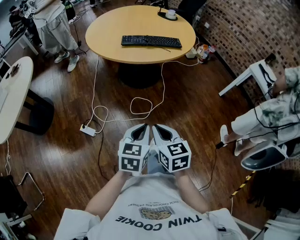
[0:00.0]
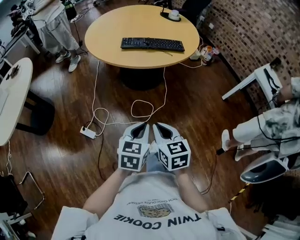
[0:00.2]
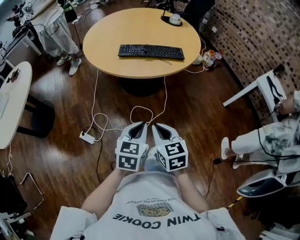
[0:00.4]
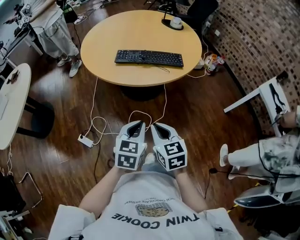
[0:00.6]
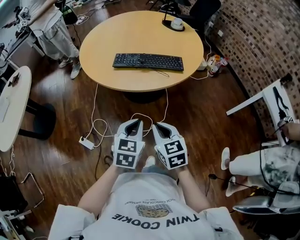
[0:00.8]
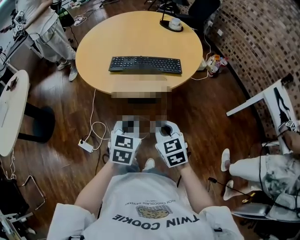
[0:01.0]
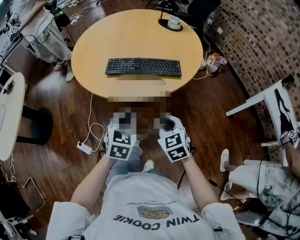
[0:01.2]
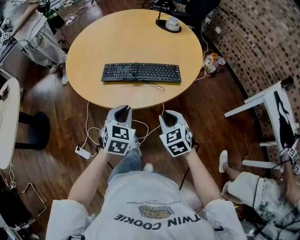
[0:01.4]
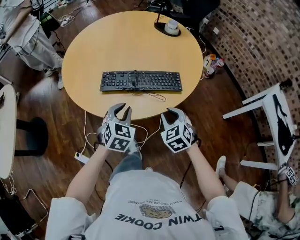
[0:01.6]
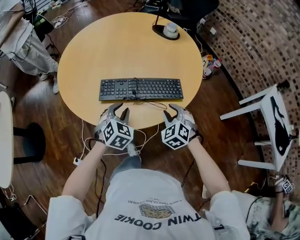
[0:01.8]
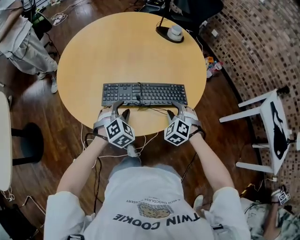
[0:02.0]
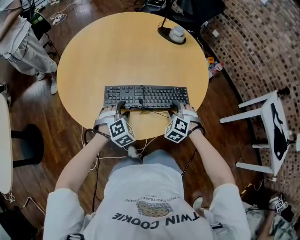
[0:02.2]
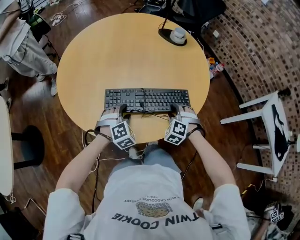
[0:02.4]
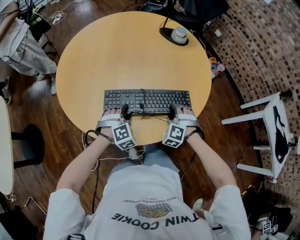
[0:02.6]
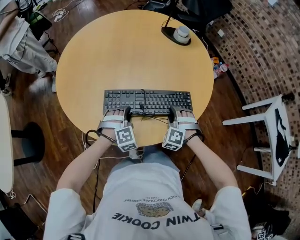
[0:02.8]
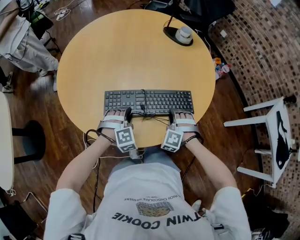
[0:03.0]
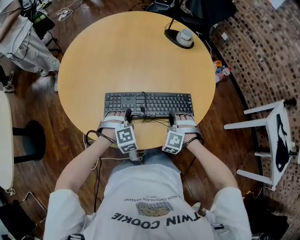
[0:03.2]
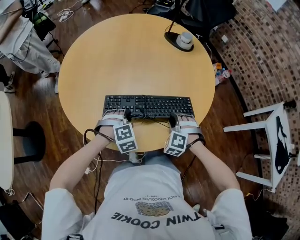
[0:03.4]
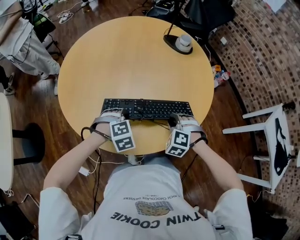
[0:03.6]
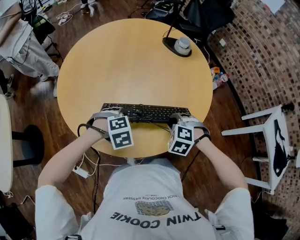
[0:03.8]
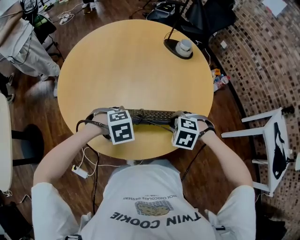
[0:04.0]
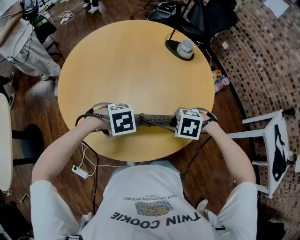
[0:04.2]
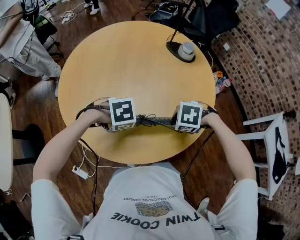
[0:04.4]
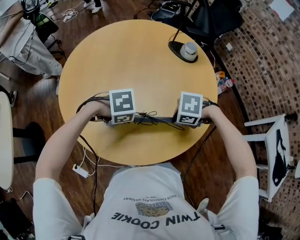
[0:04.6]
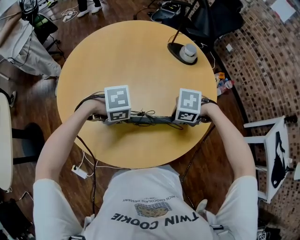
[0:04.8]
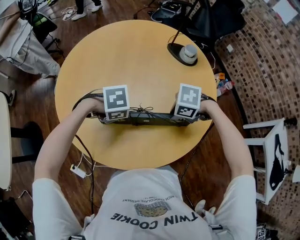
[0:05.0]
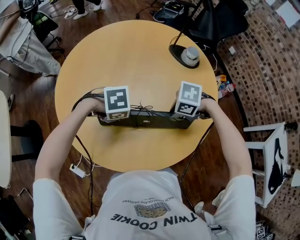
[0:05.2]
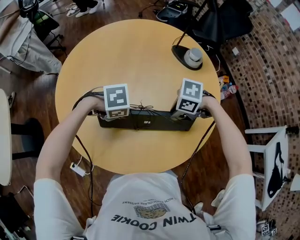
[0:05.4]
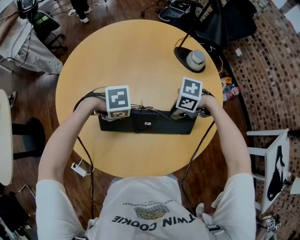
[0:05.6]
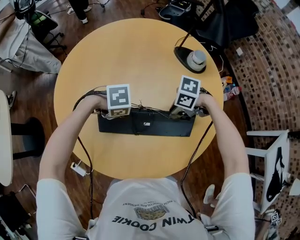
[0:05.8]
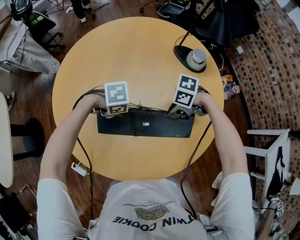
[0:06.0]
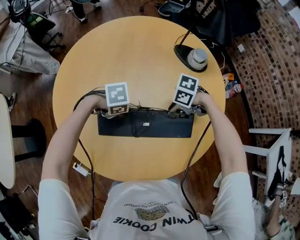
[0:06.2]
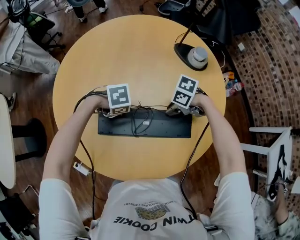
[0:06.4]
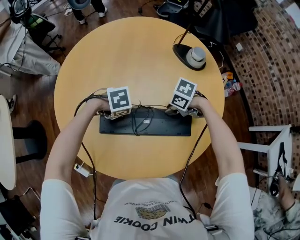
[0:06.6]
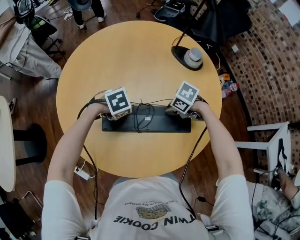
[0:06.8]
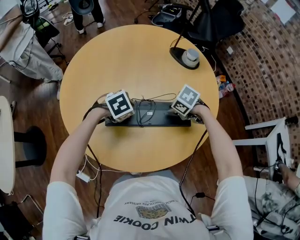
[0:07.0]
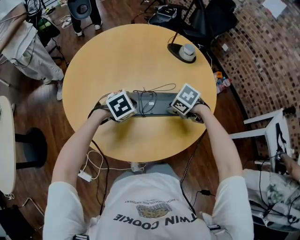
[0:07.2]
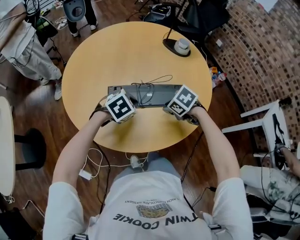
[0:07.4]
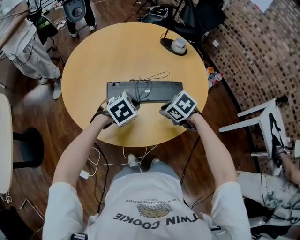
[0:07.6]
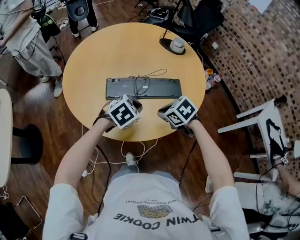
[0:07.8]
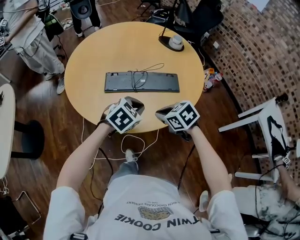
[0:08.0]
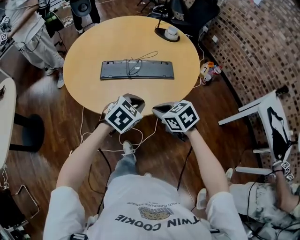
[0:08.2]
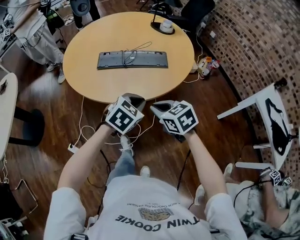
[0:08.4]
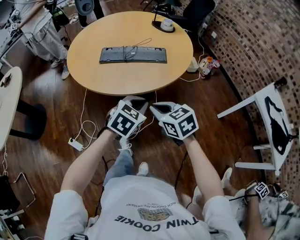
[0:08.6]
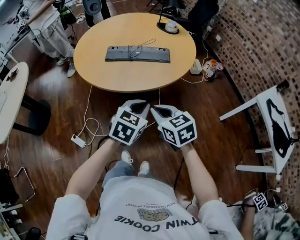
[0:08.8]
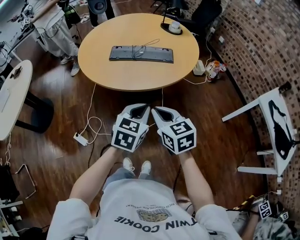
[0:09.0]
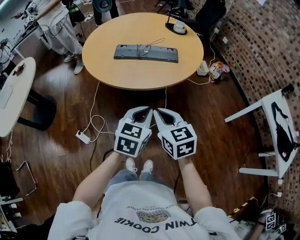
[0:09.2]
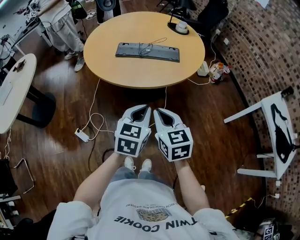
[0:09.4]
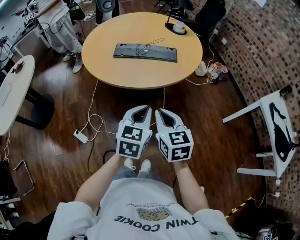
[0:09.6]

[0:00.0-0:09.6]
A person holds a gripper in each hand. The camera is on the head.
0:00.0 to 0:01.6: The pair of grippers is taken forward, approximately 50 cm. The right gripper changes its angle by some 40 degrees. Meanwhile the left gripper rotates about 30 degrees.
0:01.6 to 0:03.2: Both grippers travel together forward and downward, roughly 20 cm. The left gripper rolls clockwise, seen from behind, by approximately 40 degrees. Meanwhile the right gripper rotates around the line of its fingers by roughly 50 degrees, counterclockwise from behind, and opens, then closes once more.
0:03.2 to 0:04.8: The grippers both shift upward by about 10 cm. The left gripper turns by roughly 60 degrees. The right gripper changes its angle by approximately 70 degrees.
0:04.8 to 0:06.4: The two grippers go roughly 15 cm backward and downward. The left gripper closes. Meanwhile the right gripper turns by some 20 degrees.
0:06.4 to 0:08.0: The right gripper changes place by some 35 cm, turns by roughly 40 degrees, and closes up; the left gripper ends up about 30 cm from where it was, and changes its angle by some 50 degrees.
0:08.0 to 0:09.6: Both grippers move backward, roughly 30 cm. The right gripper rotates some 40 degrees, while the left gripper rotates some 40 degrees.

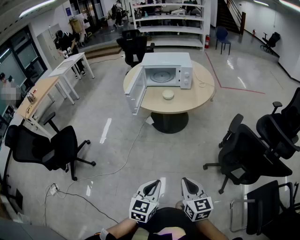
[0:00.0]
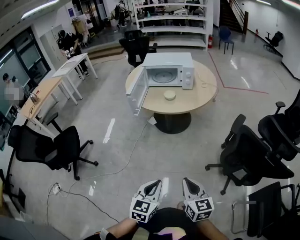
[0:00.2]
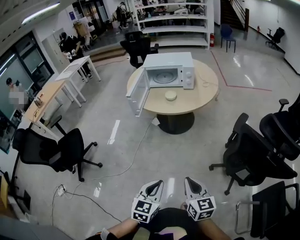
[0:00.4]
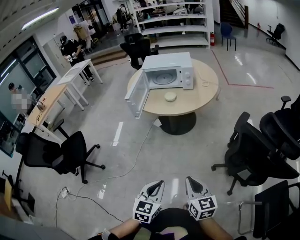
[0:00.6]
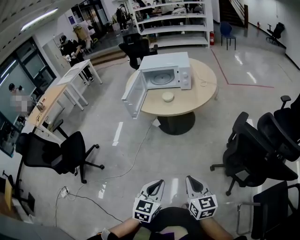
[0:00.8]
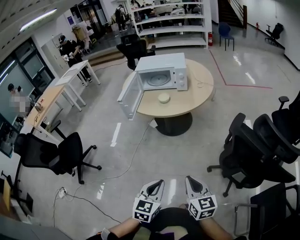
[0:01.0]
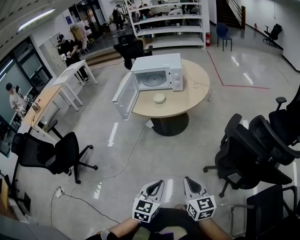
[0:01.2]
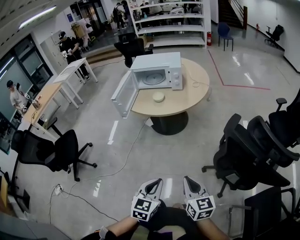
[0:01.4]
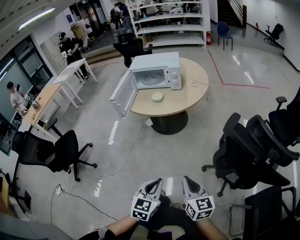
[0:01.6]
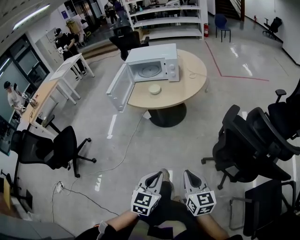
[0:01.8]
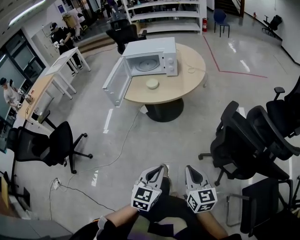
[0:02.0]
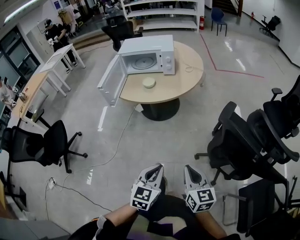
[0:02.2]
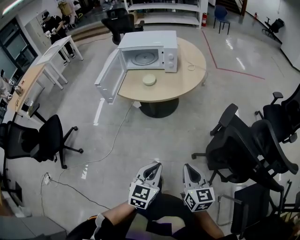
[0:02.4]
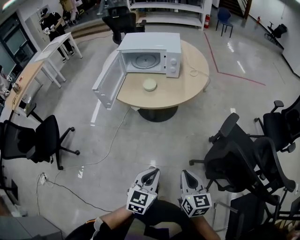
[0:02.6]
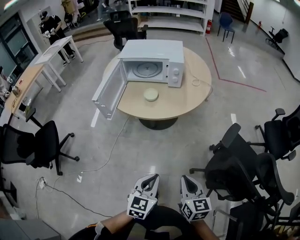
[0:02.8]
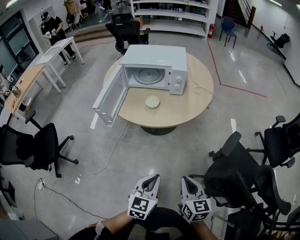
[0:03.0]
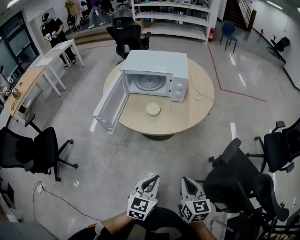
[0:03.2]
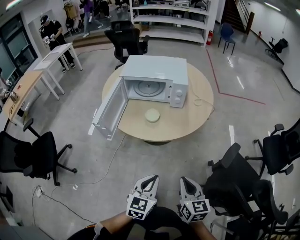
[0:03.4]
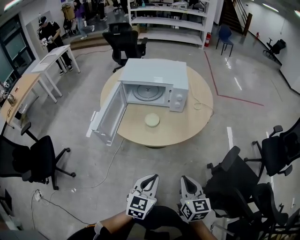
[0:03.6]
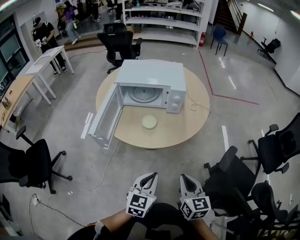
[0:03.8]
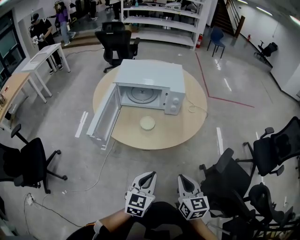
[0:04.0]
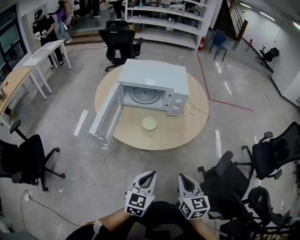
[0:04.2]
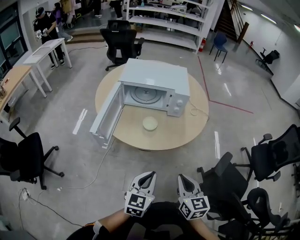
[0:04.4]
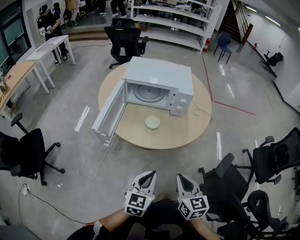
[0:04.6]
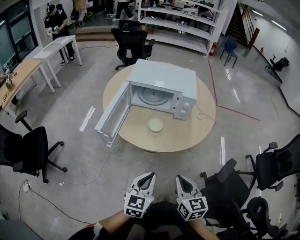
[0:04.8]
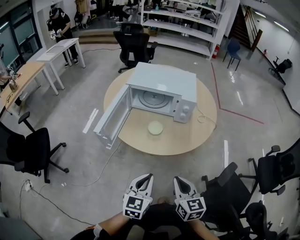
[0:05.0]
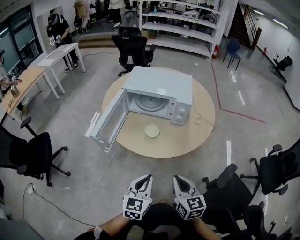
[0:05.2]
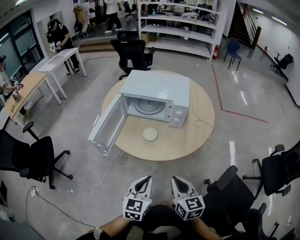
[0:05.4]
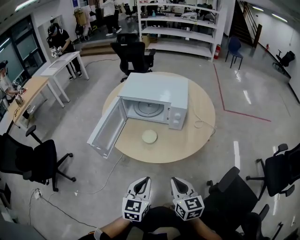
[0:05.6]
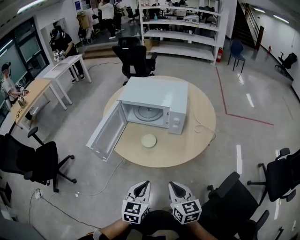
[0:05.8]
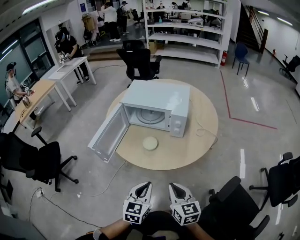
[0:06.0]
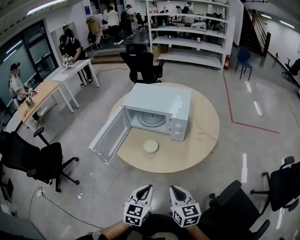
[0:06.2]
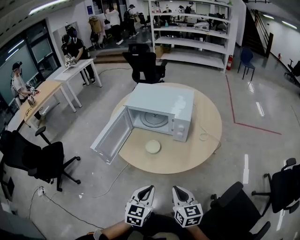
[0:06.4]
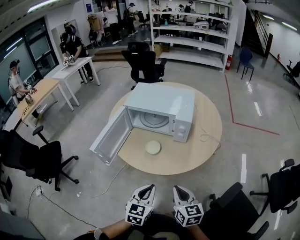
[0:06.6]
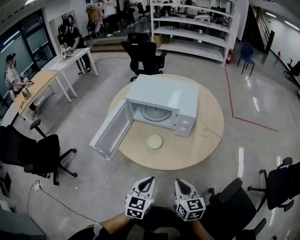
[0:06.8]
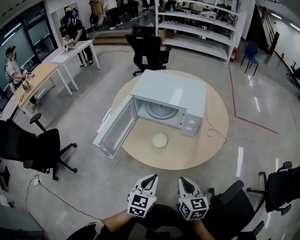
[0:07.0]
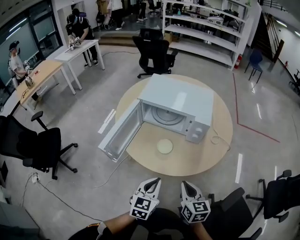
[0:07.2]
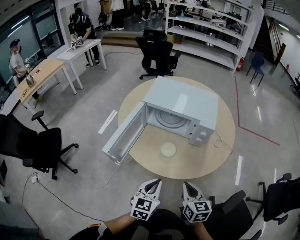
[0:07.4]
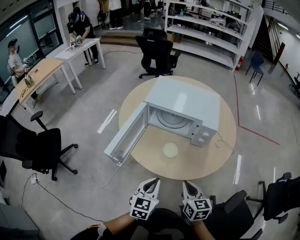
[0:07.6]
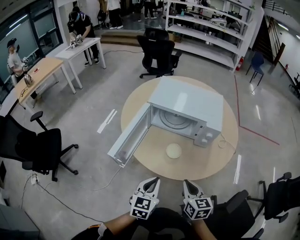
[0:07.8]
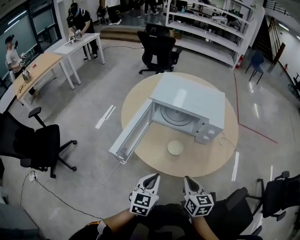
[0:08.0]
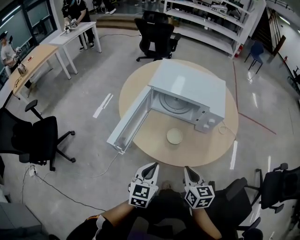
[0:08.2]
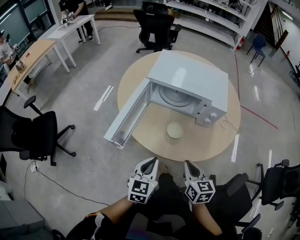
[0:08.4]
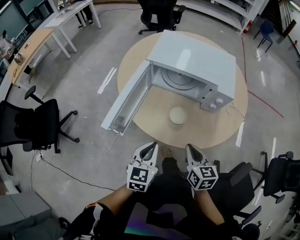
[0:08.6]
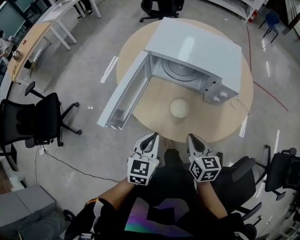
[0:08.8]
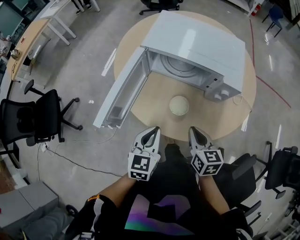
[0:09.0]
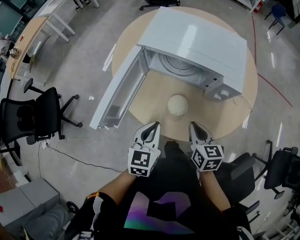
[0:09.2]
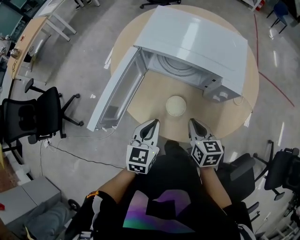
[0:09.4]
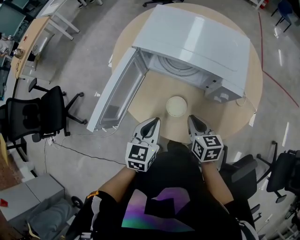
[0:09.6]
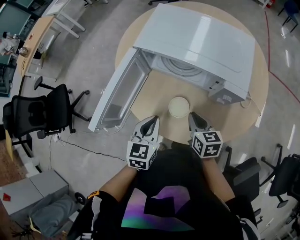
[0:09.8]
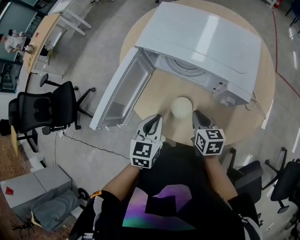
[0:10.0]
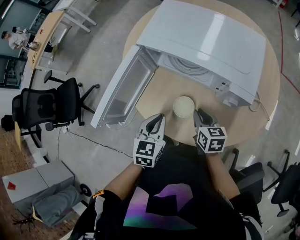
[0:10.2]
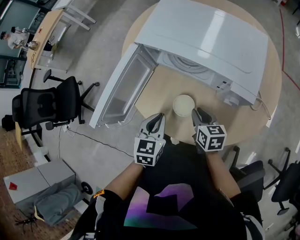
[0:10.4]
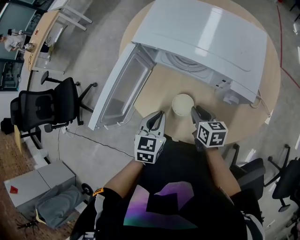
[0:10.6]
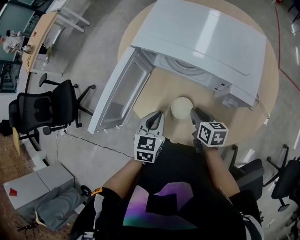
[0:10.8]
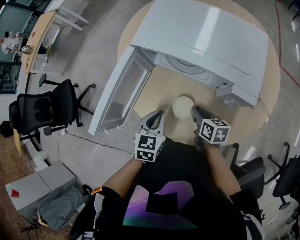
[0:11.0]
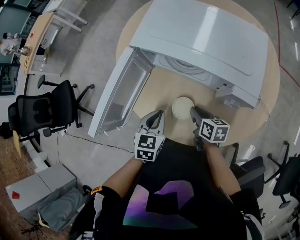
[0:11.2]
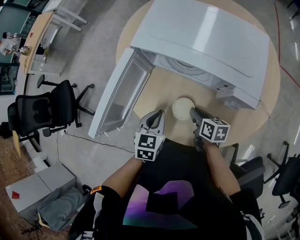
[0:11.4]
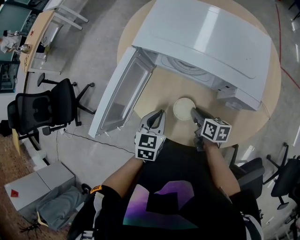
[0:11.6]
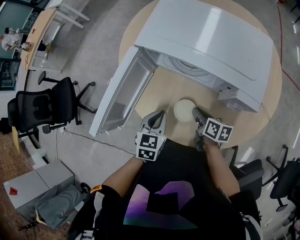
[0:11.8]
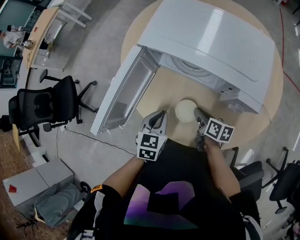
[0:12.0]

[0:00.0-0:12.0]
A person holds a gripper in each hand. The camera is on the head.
0:00.0 to 0:01.6: Both grippers travel together to the right, about 15 cm.
0:01.6 to 0:03.0: The grippers both shift forward by some 25 cm.
0:03.0 to 0:04.4: Both grippers travel together forward and to the left, about 15 cm.
0:04.4 to 0:06.0: The left gripper shifts roughly 10 cm to the right. The right gripper is displaced to the right and forward by approximately 10 cm.
0:06.0 to 0:07.6: The left gripper goes approximately 15 cm to the left and forward, while the right gripper travels forward and to the left by some 15 cm.
0:07.6 to 0:09.0: The left gripper goes roughly 10 cm forward; the right gripper moves forward and downward, roughly 15 cm.
0:09.0 to 0:10.4: Both grippers travel together forward and downward, roughly 15 cm.
0:10.4 to 0:12.0: The right gripper ends up some 5 cm from where it was, and rotates some 30 degrees.

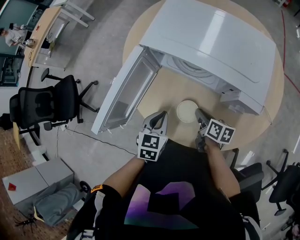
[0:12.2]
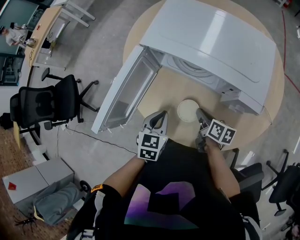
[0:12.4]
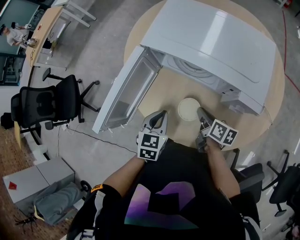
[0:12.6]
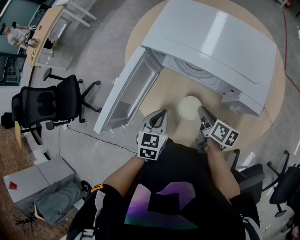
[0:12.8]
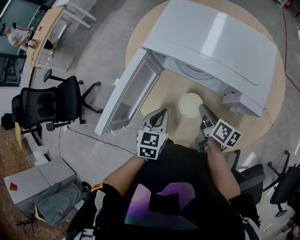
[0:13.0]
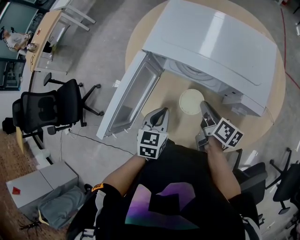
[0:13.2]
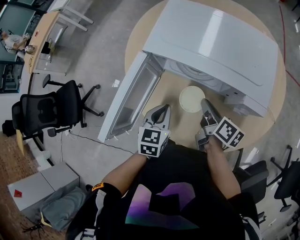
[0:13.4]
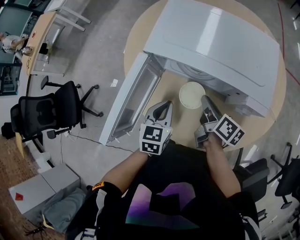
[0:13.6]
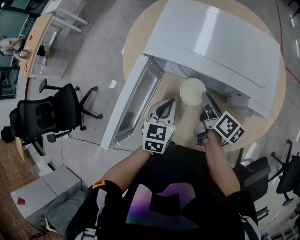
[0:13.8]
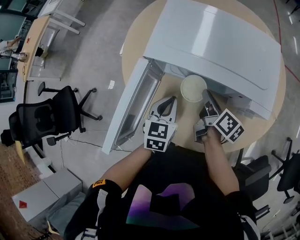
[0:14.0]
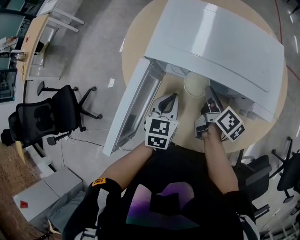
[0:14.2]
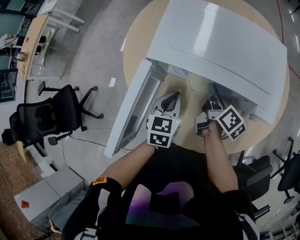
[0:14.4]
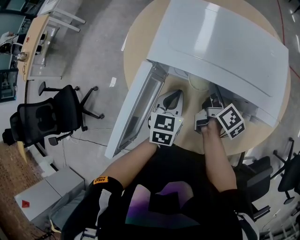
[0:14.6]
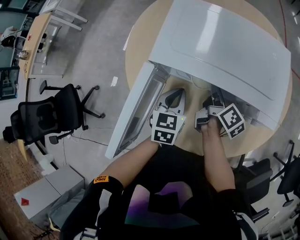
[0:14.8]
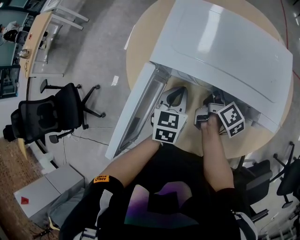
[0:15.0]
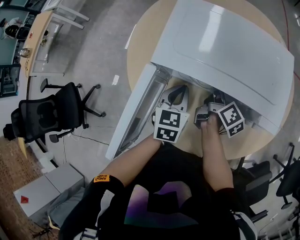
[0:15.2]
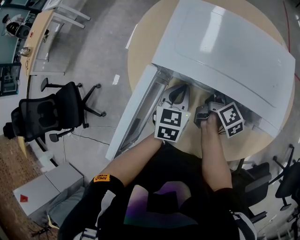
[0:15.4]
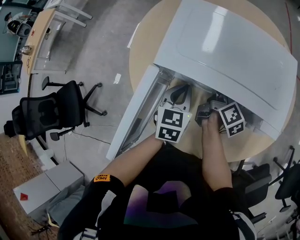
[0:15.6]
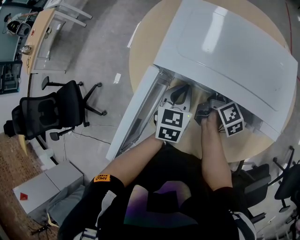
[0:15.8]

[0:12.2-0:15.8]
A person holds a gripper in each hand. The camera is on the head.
0:12.2 to 0:14.0: The right gripper heads forward and upward, covering about 15 cm, and changes its angle by approximately 30 degrees, while the left gripper shifts about 10 cm forward.
0:14.0 to 0:15.8: The two grippers go roughly 10 cm forward. The right gripper swivels some 20 degrees.
